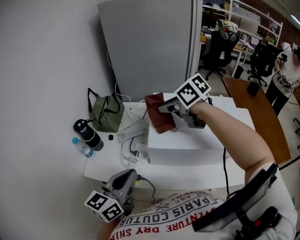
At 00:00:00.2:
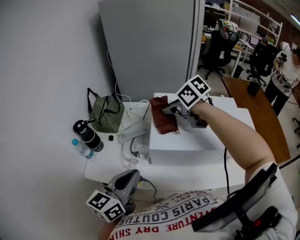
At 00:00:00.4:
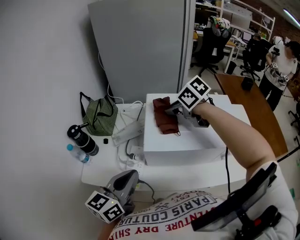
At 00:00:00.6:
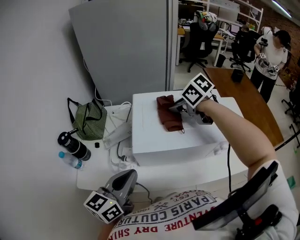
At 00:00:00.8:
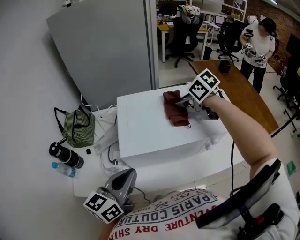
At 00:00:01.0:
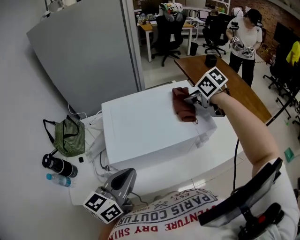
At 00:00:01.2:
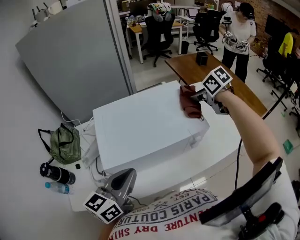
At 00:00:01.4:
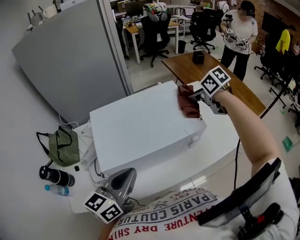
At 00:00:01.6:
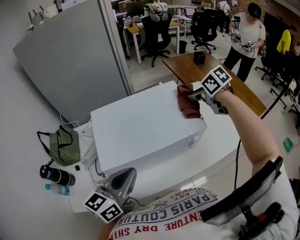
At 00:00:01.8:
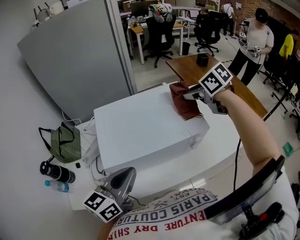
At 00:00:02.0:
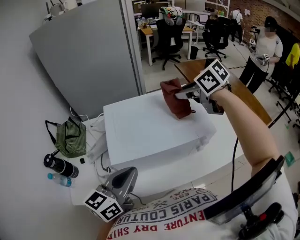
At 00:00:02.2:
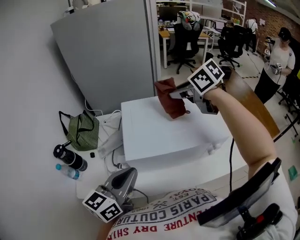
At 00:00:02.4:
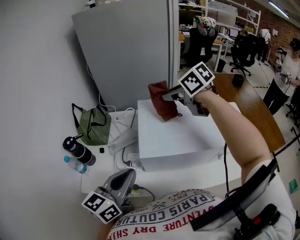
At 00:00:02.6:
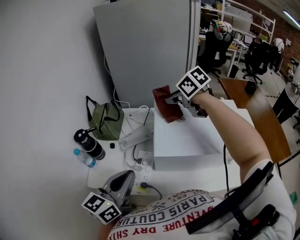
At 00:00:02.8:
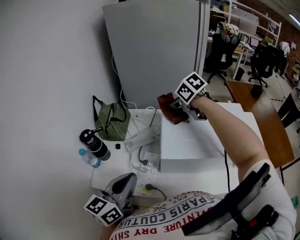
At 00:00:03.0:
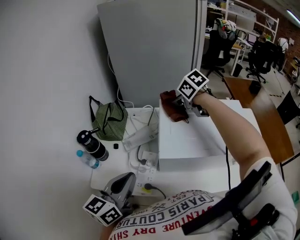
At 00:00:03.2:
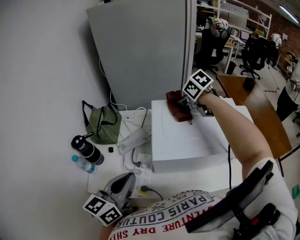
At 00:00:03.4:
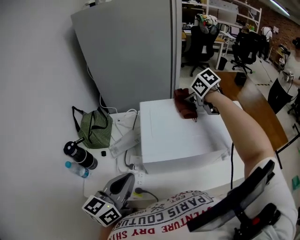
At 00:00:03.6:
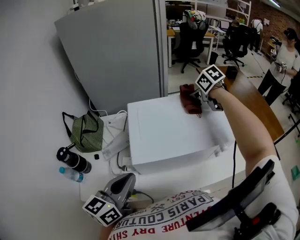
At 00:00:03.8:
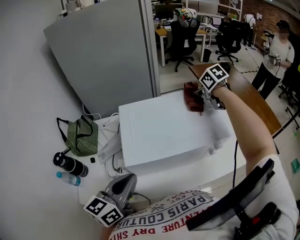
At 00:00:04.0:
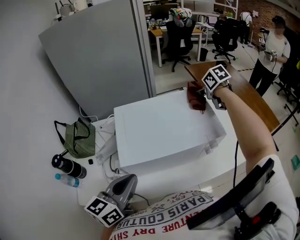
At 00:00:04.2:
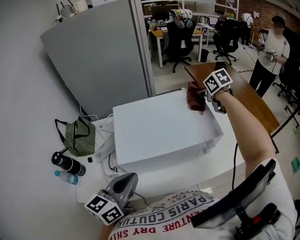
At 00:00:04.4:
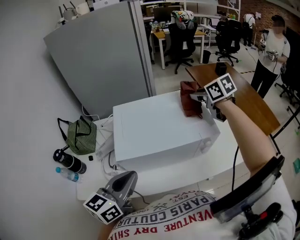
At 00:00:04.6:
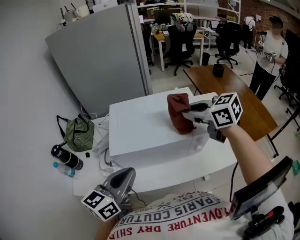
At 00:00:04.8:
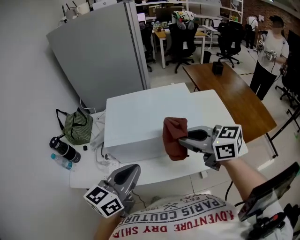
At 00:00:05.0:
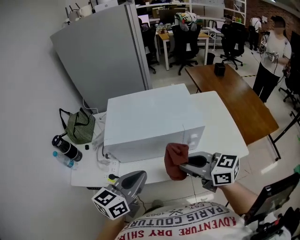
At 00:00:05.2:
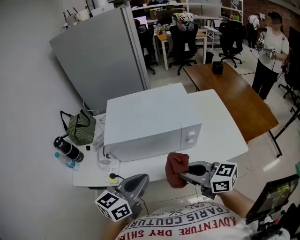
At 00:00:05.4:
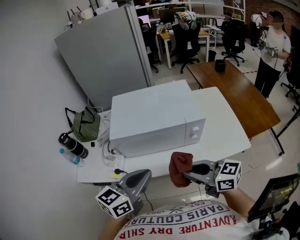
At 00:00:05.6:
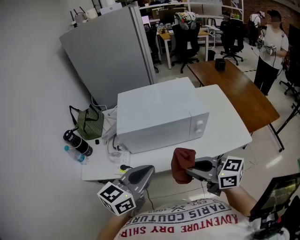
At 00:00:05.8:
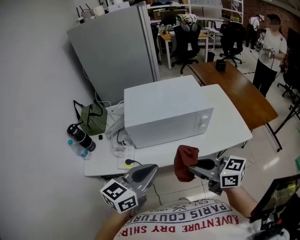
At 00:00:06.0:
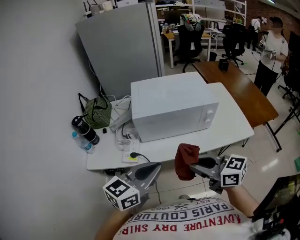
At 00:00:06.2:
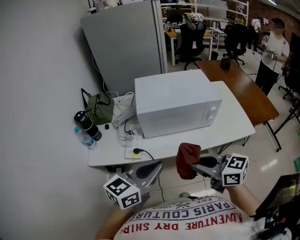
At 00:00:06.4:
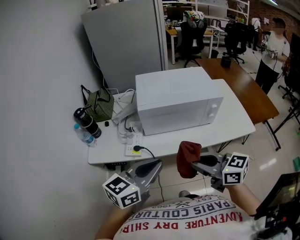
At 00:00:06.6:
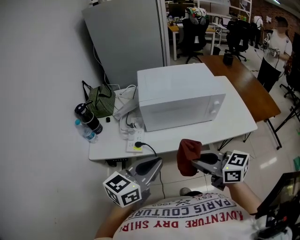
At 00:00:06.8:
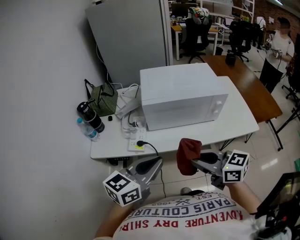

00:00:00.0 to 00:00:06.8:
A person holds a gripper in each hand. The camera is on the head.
00:00:00.0 to 00:00:01.4: The right gripper moves about 40 cm, and rotates roughly 40 degrees. Meanwhile the left gripper ends up about 15 cm from where it was, and changes its angle by some 30 degrees.
00:00:01.4 to 00:00:02.8: The right gripper moves some 10 cm upward and comes back, and turns by some 30 degrees. Meanwhile the left gripper ends up roughly 20 cm from where it was, and rotates roughly 30 degrees.
00:00:02.8 to 00:00:04.0: The left gripper shifts by some 15 cm. Meanwhile the right gripper moves some 40 cm, and swivels some 30 degrees.
00:00:04.0 to 00:00:05.4: The right gripper goes roughly 40 cm backward, and points its fingers some 40 degrees further upward; the left gripper travels backward and to the right by roughly 20 cm.
00:00:05.4 to 00:00:06.8: The grippers both shift to the left and backward by about 15 cm.

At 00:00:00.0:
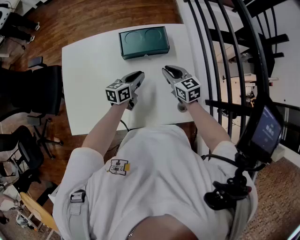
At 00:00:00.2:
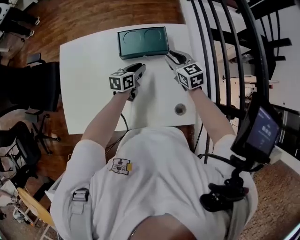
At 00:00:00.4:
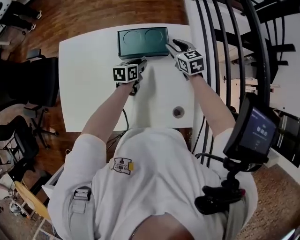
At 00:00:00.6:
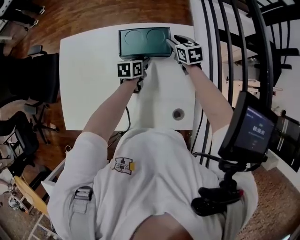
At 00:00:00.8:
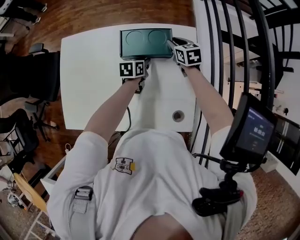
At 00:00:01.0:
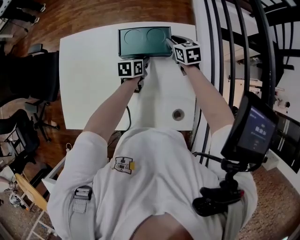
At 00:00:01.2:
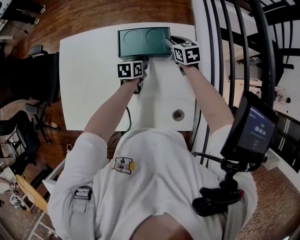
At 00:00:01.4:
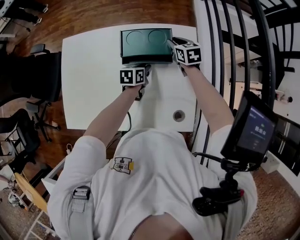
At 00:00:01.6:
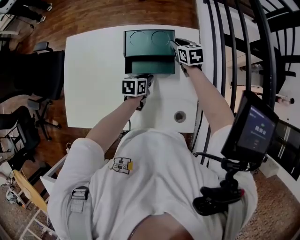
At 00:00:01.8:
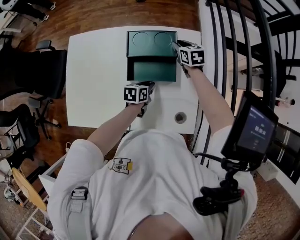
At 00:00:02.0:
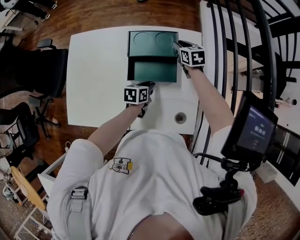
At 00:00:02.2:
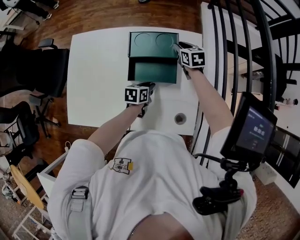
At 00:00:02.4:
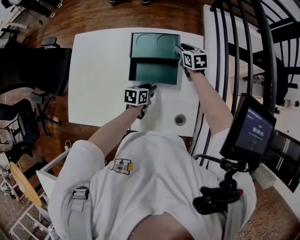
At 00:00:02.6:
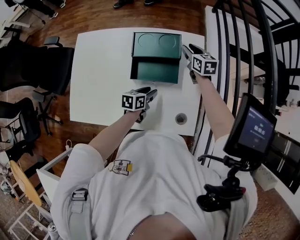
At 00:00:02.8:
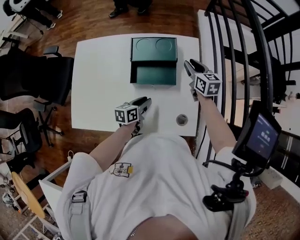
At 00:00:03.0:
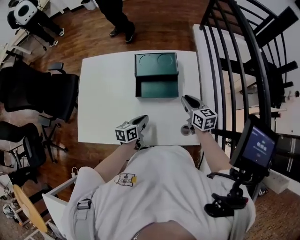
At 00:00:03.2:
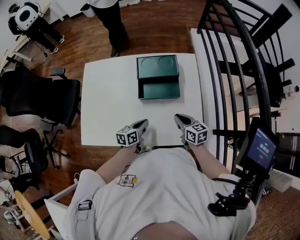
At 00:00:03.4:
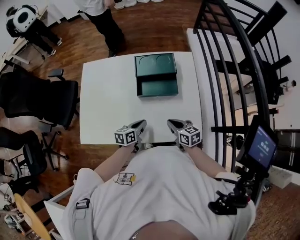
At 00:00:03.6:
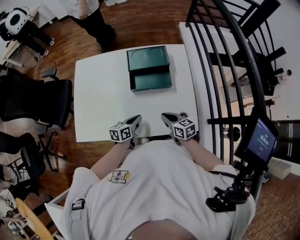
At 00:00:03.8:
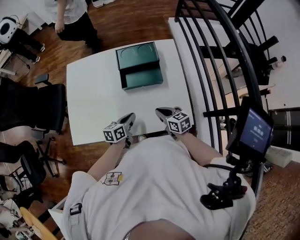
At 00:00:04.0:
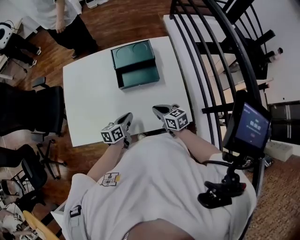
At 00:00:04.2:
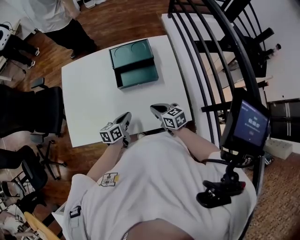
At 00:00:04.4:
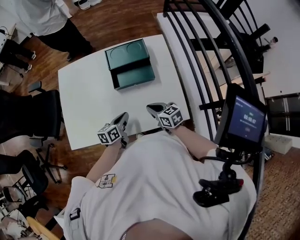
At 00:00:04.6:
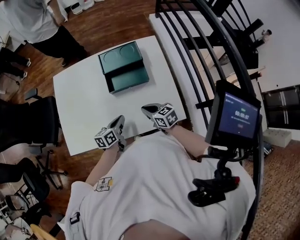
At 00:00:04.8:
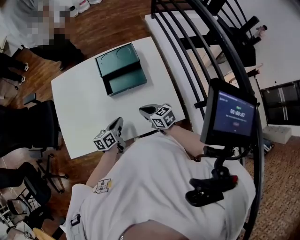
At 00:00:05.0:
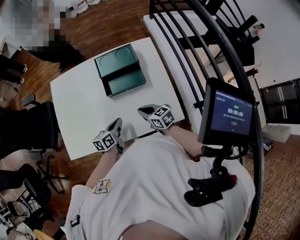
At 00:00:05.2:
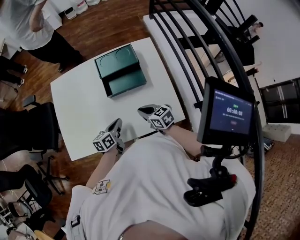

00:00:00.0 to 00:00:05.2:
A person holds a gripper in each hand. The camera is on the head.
00:00:00.0 to 00:00:01.8: The right gripper goes about 15 cm forward; the left gripper moves downward, about 5 cm, travels forward and back again, about 10 cm each way, and rotates some 30 degrees.
00:00:01.8 to 00:00:03.4: The left gripper travels backward and to the left by approximately 15 cm. The right gripper moves backward, some 35 cm, changes its angle by some 20 degrees, and closes up.
00:00:03.4 to 00:00:05.2: The grippers stay close to where they were, moving slightly.

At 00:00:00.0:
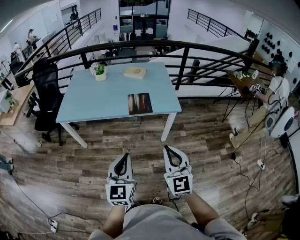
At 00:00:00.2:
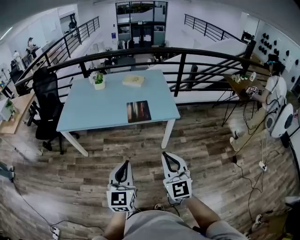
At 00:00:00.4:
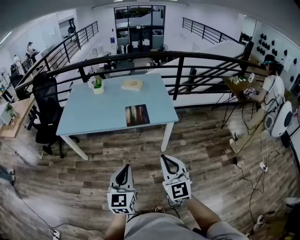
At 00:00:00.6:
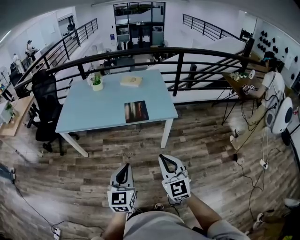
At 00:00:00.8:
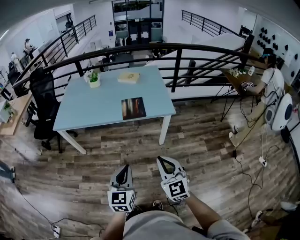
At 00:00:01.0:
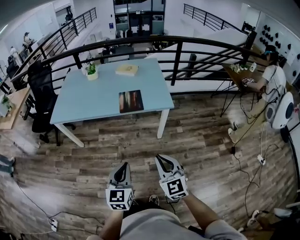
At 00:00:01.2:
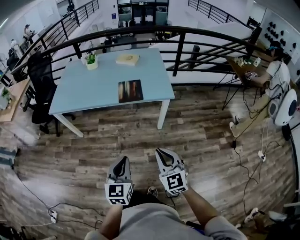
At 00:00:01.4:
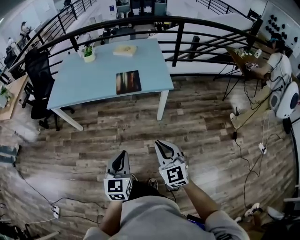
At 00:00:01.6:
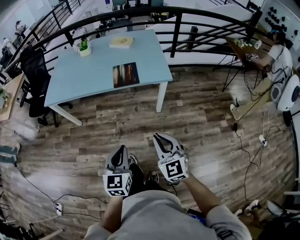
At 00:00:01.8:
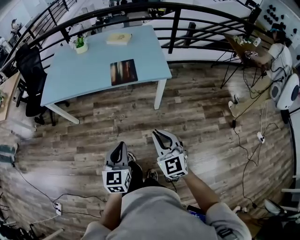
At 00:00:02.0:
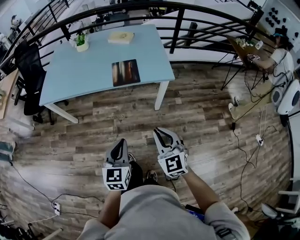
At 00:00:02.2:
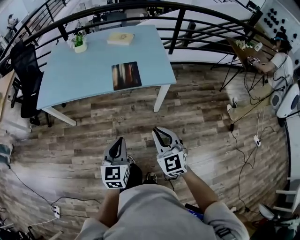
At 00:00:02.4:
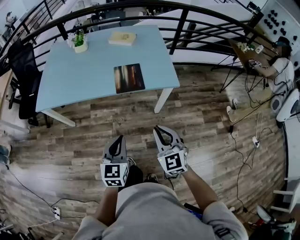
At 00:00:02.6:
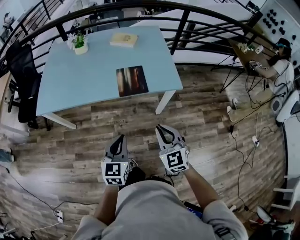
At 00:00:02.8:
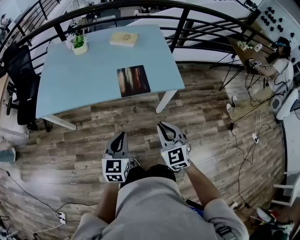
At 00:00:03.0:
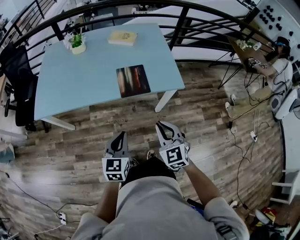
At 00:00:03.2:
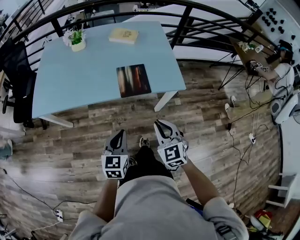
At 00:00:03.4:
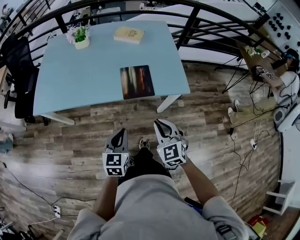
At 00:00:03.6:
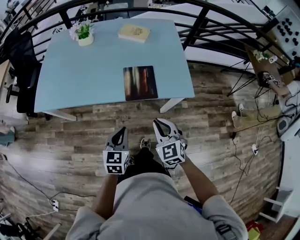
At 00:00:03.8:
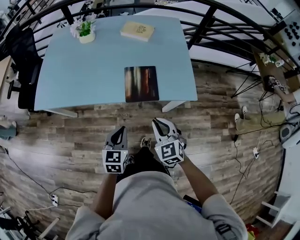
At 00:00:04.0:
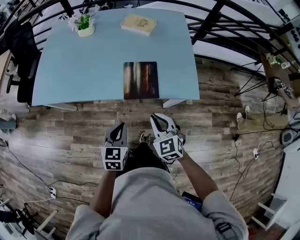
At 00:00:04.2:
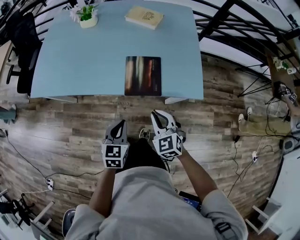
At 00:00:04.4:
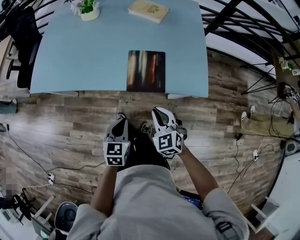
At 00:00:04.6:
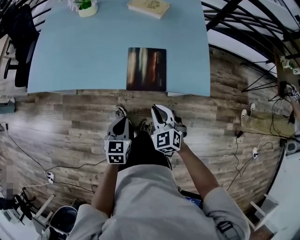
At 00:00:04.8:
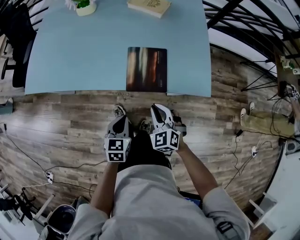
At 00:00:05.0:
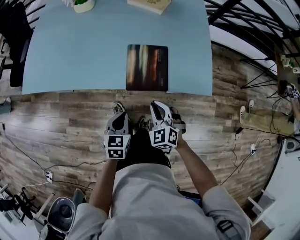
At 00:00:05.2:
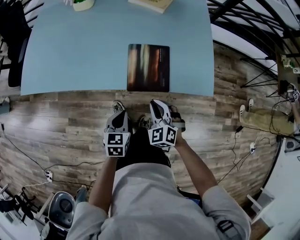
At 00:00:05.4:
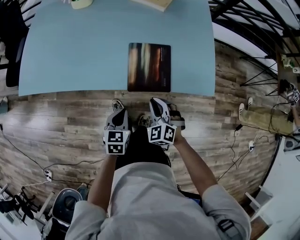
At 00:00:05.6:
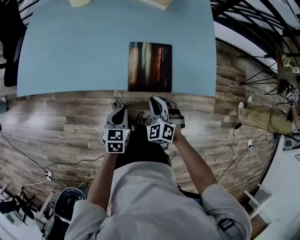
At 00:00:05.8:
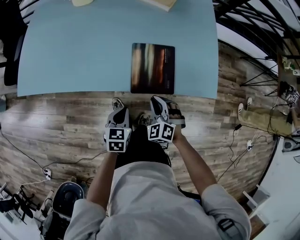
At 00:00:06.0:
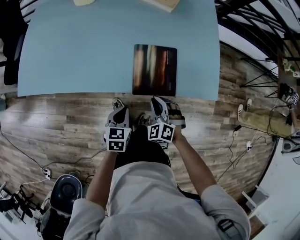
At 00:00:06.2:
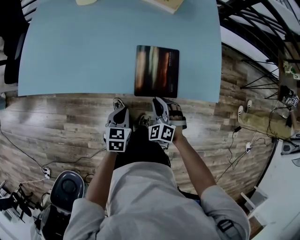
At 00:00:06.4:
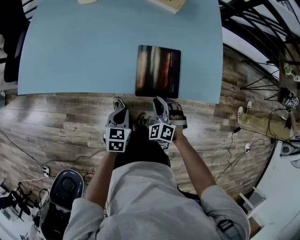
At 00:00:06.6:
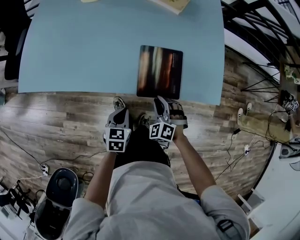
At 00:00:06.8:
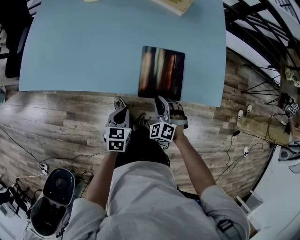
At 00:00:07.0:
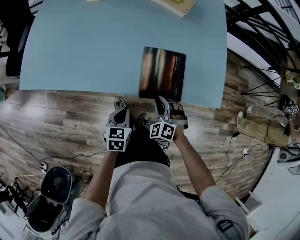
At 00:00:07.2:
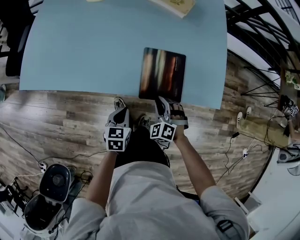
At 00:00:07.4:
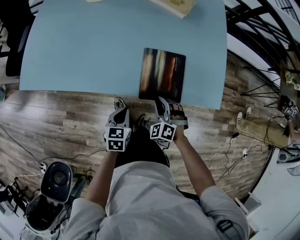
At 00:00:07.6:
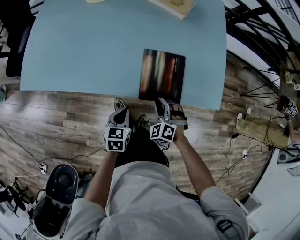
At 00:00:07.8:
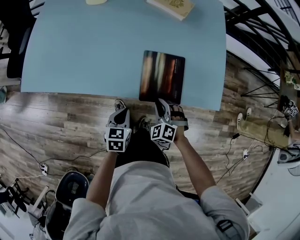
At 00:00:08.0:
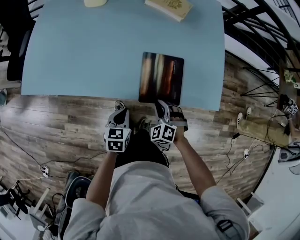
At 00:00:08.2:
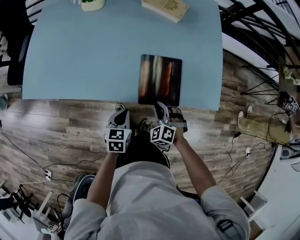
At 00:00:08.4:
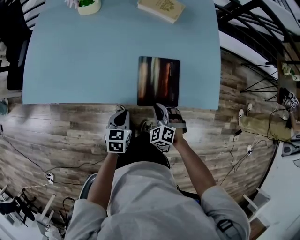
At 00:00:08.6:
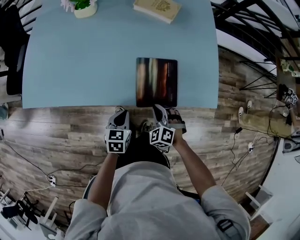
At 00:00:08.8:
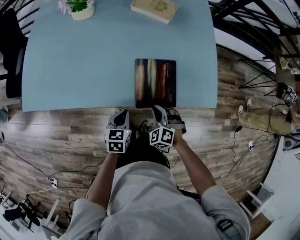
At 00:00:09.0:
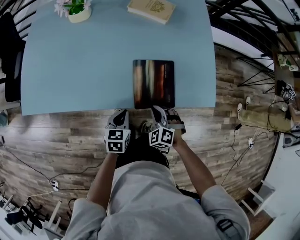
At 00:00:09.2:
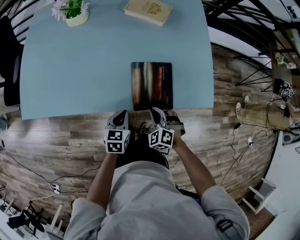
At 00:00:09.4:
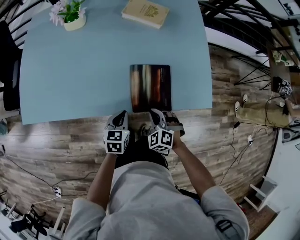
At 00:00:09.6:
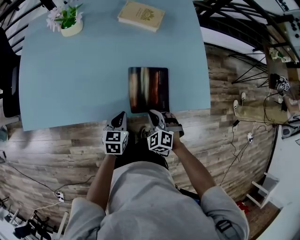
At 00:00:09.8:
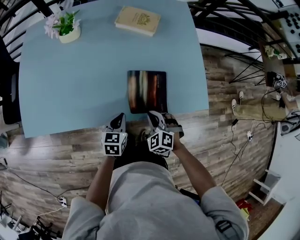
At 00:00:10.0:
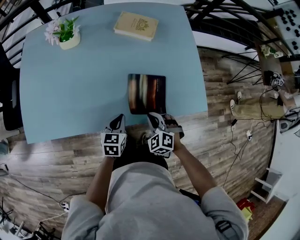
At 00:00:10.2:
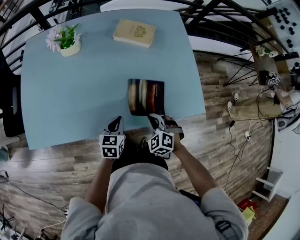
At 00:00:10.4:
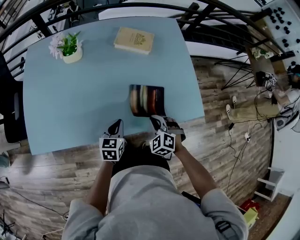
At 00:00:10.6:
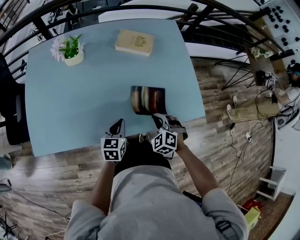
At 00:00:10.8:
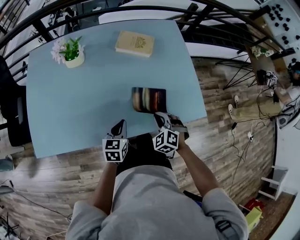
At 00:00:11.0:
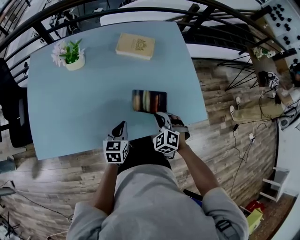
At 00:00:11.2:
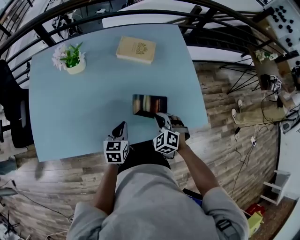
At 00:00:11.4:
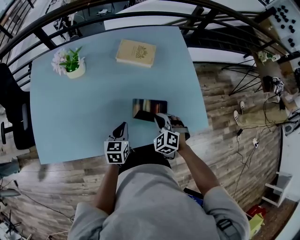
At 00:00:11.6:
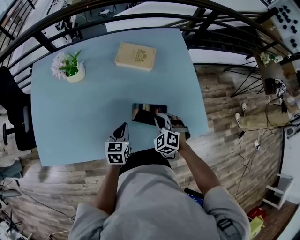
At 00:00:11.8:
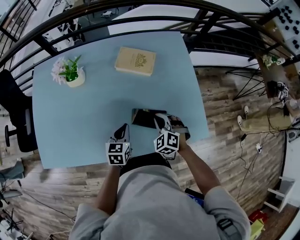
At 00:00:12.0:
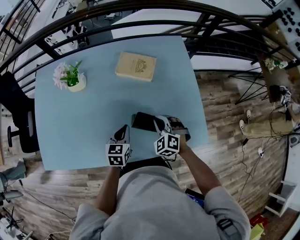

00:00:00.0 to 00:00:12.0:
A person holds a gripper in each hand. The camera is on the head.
00:00:00.0 to 00:00:01.6: The two grippers go about 15 cm downward and to the right.
00:00:01.6 to 00:00:03.0: The grippers both shift forward and to the left by some 25 cm.
00:00:03.0 to 00:00:04.4: The left gripper travels downward and forward by about 15 cm. The right gripper shifts roughly 20 cm forward and downward.
00:00:04.4 to 00:00:06.0: Both grippers move downward and forward, some 15 cm. The right gripper changes its angle by approximately 30 degrees.
00:00:06.0 to 00:00:07.6: The grippers stay close to where they were, moving slightly.
00:00:07.6 to 00:00:09.0: The left gripper ends up approximately 5 cm from where it was.
00:00:09.0 to 00:00:10.4: The right gripper is displaced upward and forward by some 10 cm; the left gripper is displaced forward, upward and to the left by approximately 10 cm.
00:00:10.4 to 00:00:12.0: The two grippers go about 15 cm forward.
